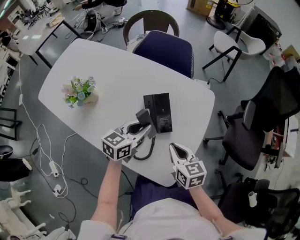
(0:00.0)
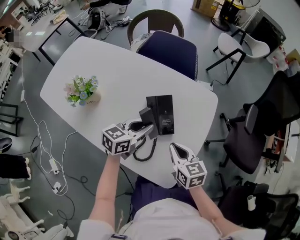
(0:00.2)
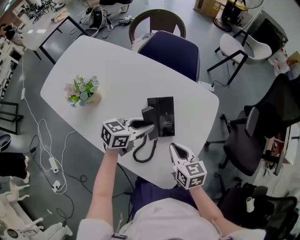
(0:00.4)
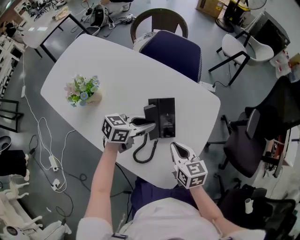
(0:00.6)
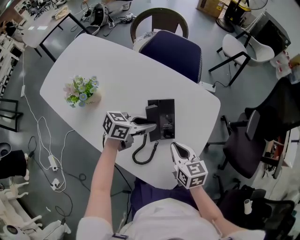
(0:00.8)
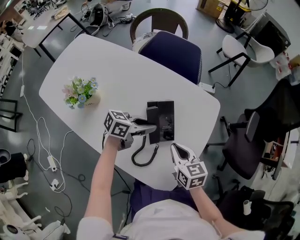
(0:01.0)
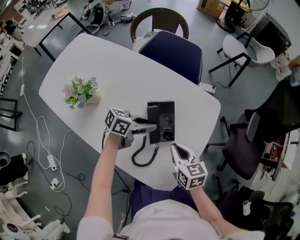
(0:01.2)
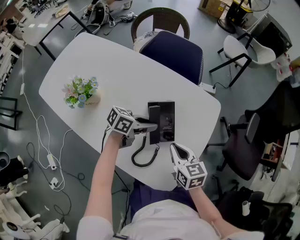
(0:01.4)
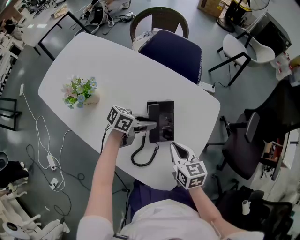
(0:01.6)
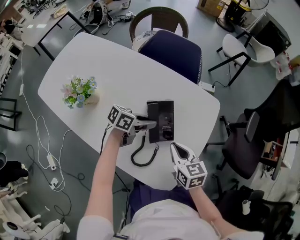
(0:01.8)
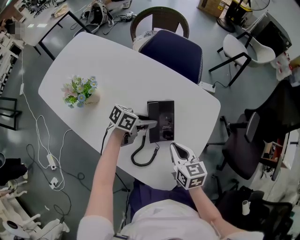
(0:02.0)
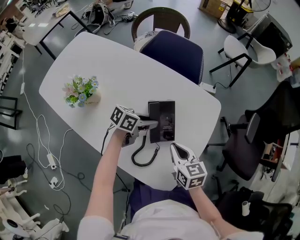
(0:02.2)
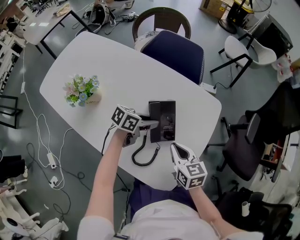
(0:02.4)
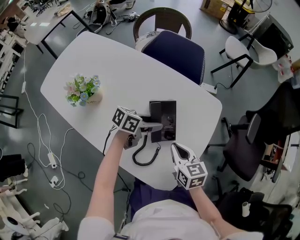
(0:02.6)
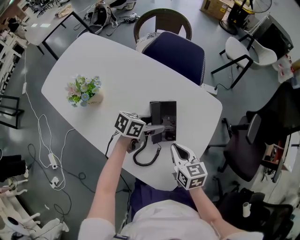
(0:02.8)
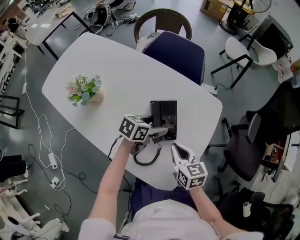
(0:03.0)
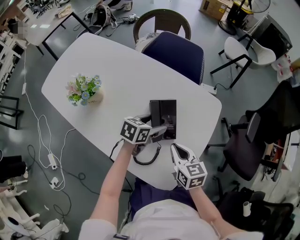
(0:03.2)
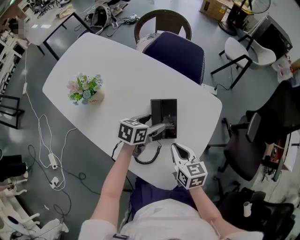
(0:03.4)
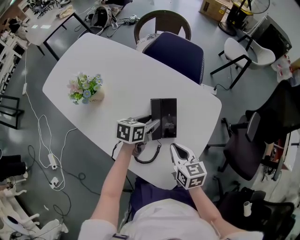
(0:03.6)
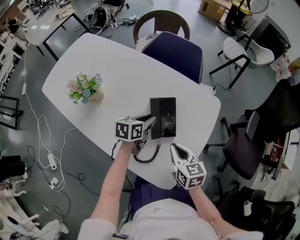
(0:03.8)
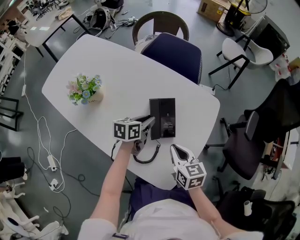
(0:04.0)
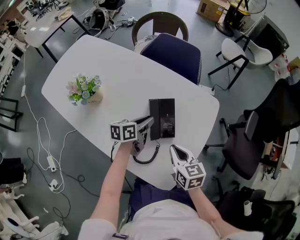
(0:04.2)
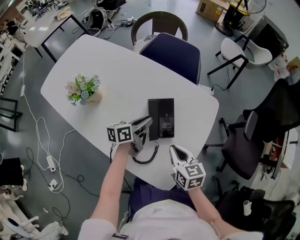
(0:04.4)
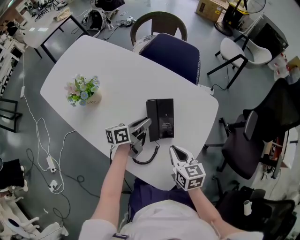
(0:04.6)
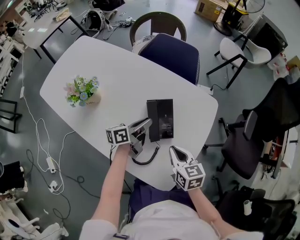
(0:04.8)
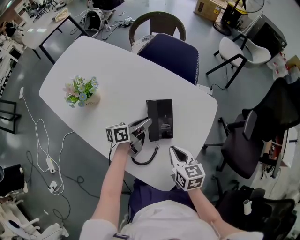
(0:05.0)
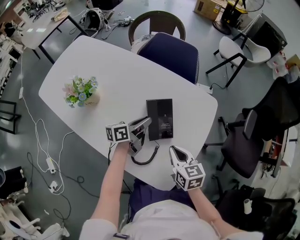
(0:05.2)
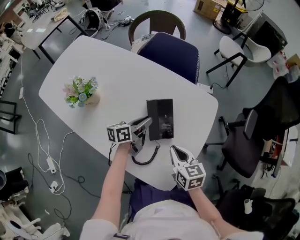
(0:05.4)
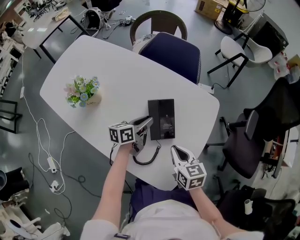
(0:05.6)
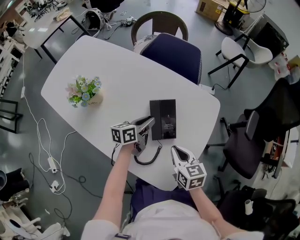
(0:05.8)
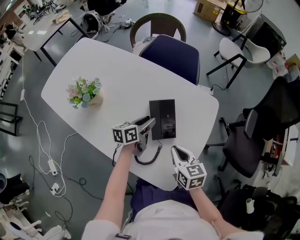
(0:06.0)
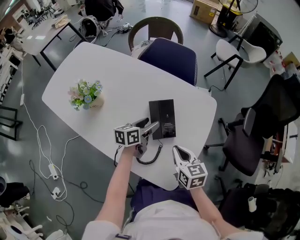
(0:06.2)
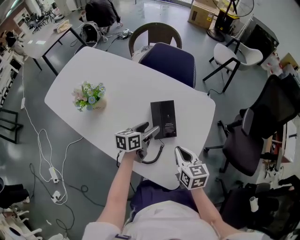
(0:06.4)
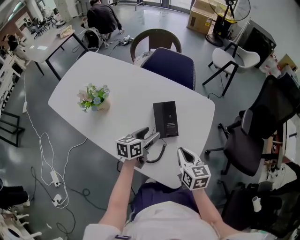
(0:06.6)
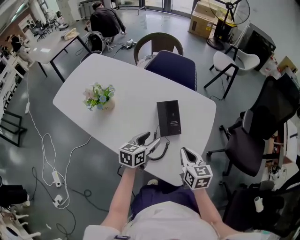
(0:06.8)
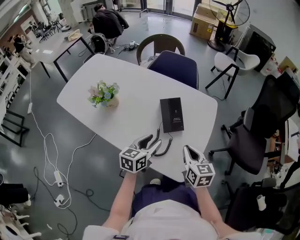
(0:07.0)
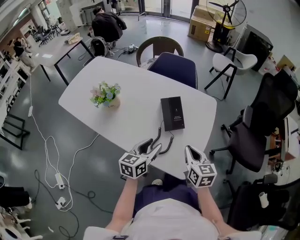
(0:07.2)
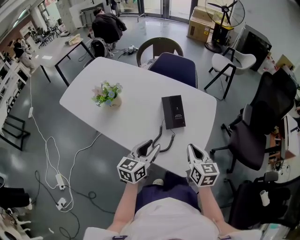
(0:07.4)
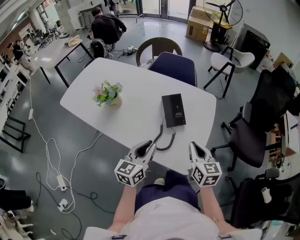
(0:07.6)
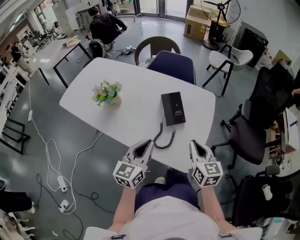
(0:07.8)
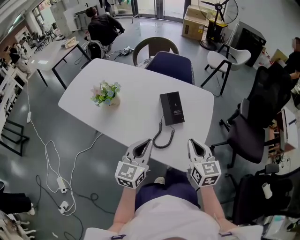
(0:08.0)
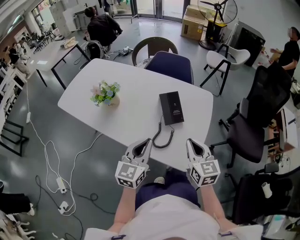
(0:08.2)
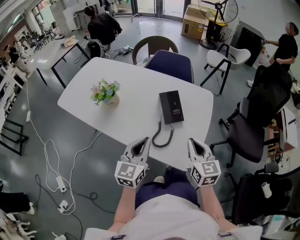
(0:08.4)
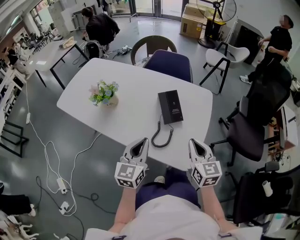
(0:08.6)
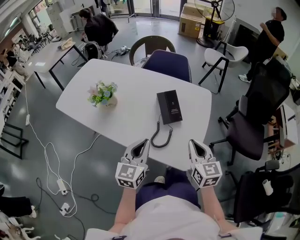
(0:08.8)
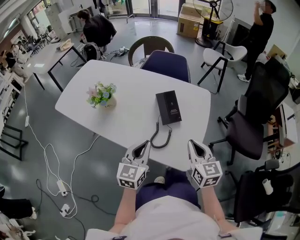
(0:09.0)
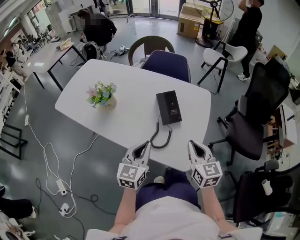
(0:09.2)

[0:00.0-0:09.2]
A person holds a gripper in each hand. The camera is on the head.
0:00.0 to 0:01.6: The left gripper goes about 5 cm downward, and swivels roughly 30 degrees.
0:01.6 to 0:03.0: The left gripper opens its fingers.
0:03.0 to 0:04.6: The left gripper goes approximately 5 cm to the left, rotates some 40 degrees, and closes.
0:04.6 to 0:06.2: The left gripper opens.
0:06.2 to 0:07.6: The right gripper is displaced backward and upward by roughly 10 cm. Meanwhile the left gripper goes approximately 25 cm backward and upward, rotates about 30 degrees, and closes.
0:07.6 to 0:09.2: The grippers move only a little.

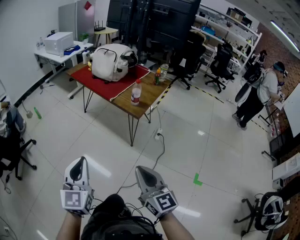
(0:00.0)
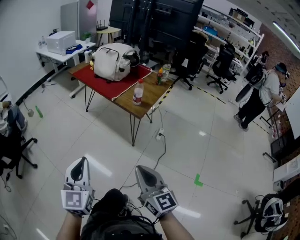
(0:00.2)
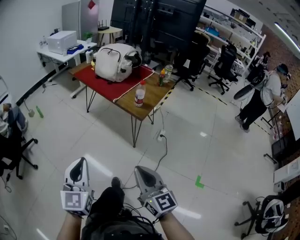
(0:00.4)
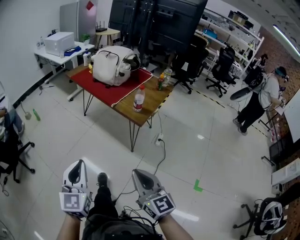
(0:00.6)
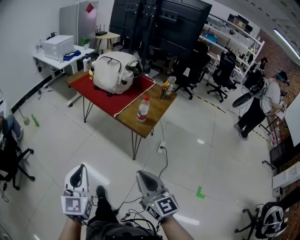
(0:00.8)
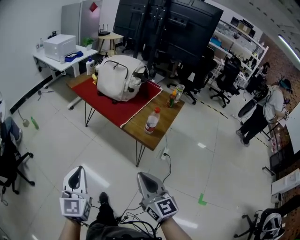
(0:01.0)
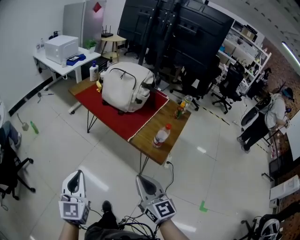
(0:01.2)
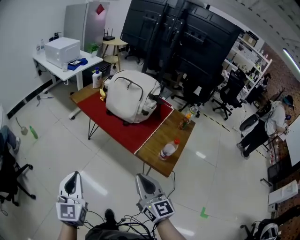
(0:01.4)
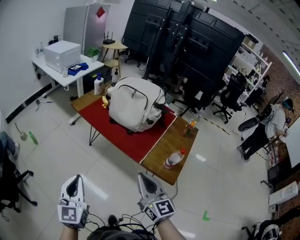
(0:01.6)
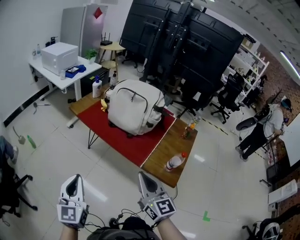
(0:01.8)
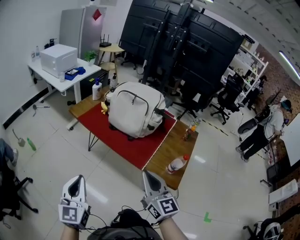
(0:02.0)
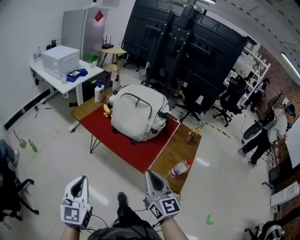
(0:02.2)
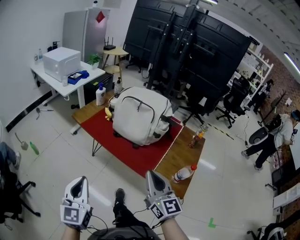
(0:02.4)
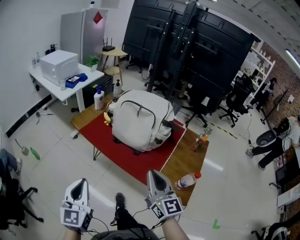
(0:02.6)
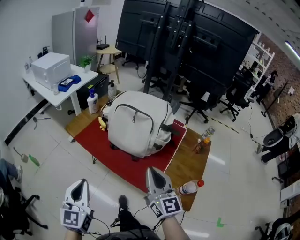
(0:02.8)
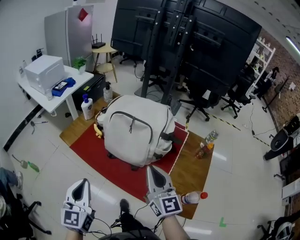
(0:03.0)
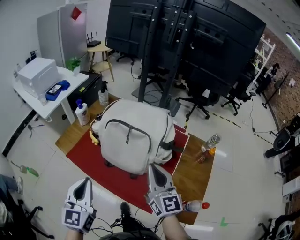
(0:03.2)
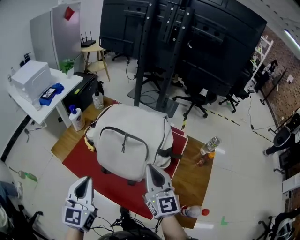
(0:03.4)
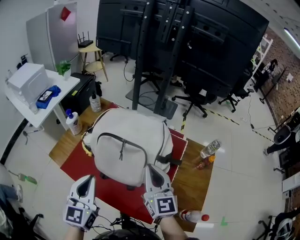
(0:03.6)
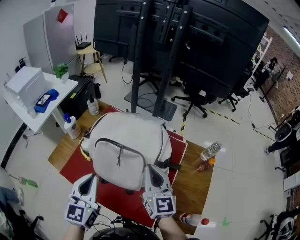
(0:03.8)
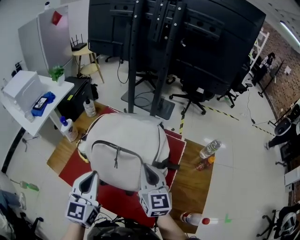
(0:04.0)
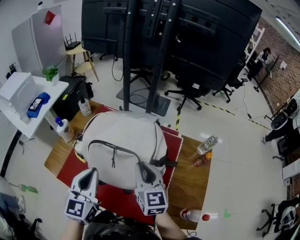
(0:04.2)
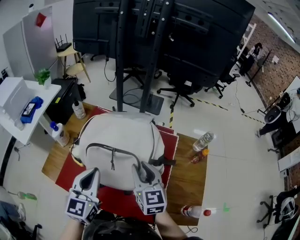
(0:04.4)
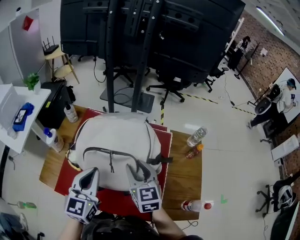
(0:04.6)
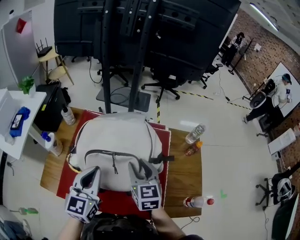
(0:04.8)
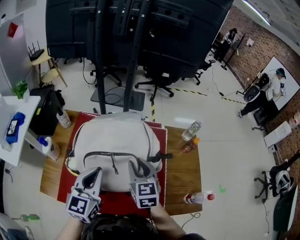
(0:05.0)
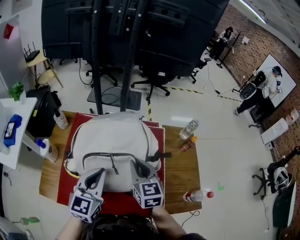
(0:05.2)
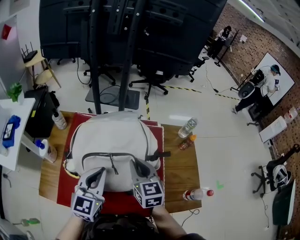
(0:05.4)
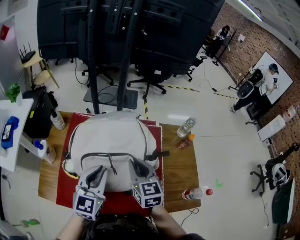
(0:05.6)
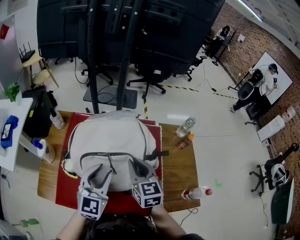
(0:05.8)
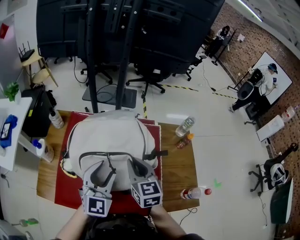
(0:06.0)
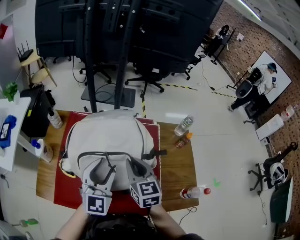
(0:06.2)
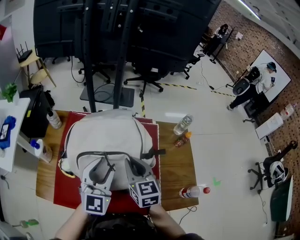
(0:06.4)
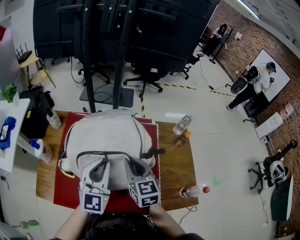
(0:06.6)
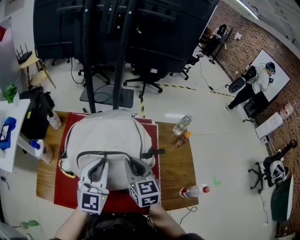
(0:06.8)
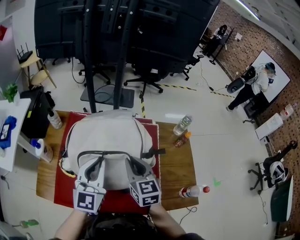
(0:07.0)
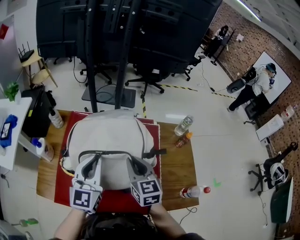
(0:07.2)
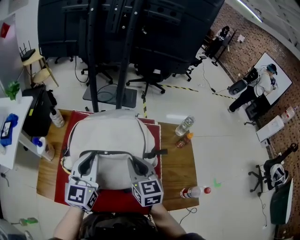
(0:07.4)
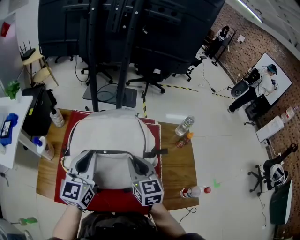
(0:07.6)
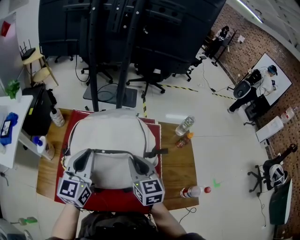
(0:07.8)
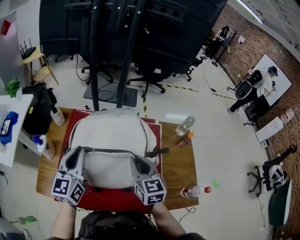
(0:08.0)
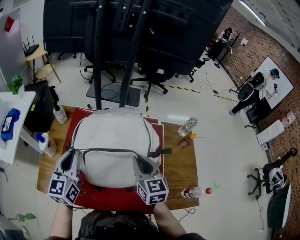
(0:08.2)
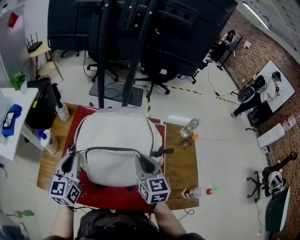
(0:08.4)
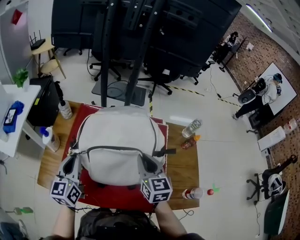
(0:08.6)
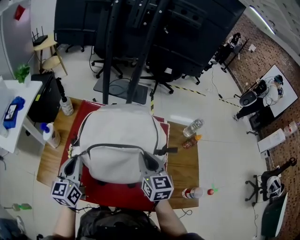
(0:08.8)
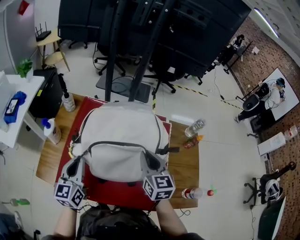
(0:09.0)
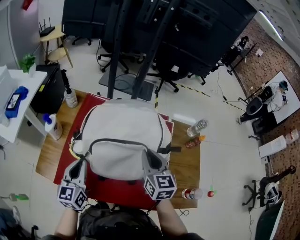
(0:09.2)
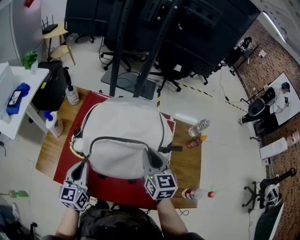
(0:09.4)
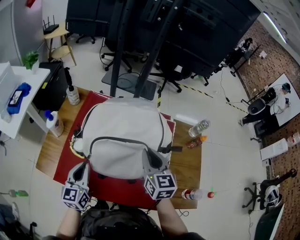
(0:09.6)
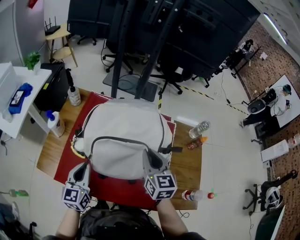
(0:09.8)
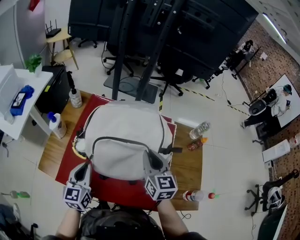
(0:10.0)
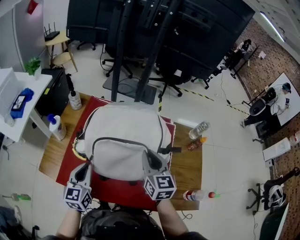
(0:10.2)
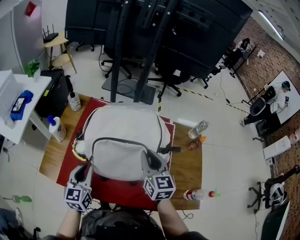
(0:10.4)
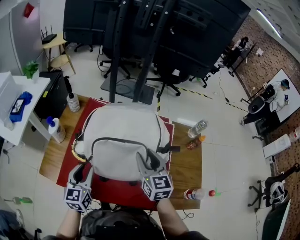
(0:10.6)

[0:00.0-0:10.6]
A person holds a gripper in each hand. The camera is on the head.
0:00.0 to 0:01.6: The two grippers travel together, forward and to the left, approximately 60 cm.
0:01.6 to 0:03.0: Both grippers travel together forward, some 35 cm.
0:03.0 to 0:04.6: Both grippers move forward, roughly 30 cm. The right gripper changes its angle by roughly 30 degrees, and opens up; the left gripper turns by about 30 degrees.
0:04.6 to 0:06.0: The left gripper changes place by roughly 5 cm, turns by about 30 degrees, and opens; the right gripper closes up.
0:06.0 to 0:07.6: The left gripper heads to the left, covering approximately 5 cm, changes its angle by some 30 degrees, and closes up.
0:07.6 to 0:09.0: The left gripper is displaced to the left, downward and backward by roughly 15 cm.
0:09.0 to 0:10.6: The left gripper moves roughly 5 cm, and opens up. The right gripper opens.

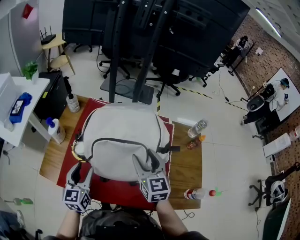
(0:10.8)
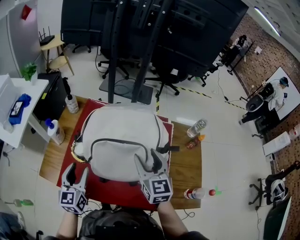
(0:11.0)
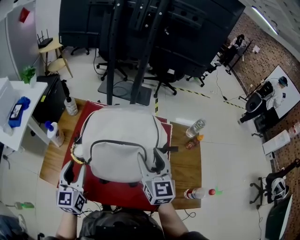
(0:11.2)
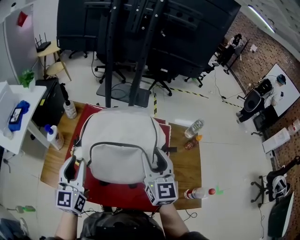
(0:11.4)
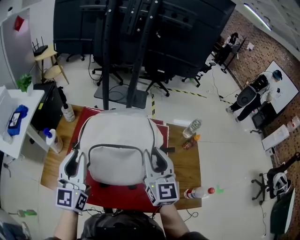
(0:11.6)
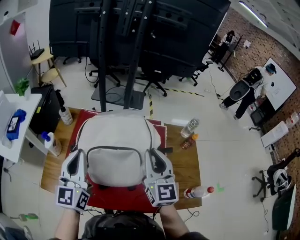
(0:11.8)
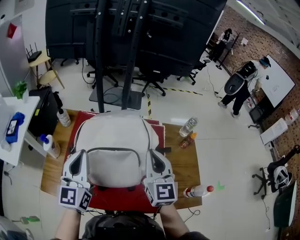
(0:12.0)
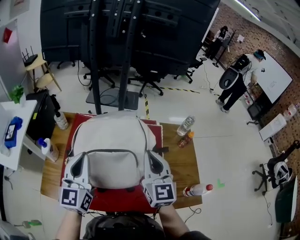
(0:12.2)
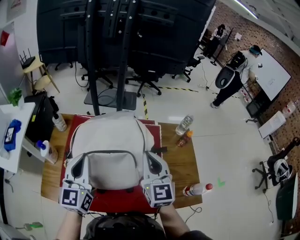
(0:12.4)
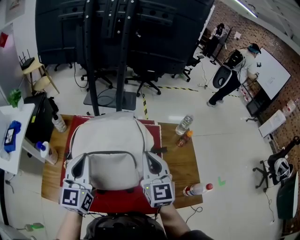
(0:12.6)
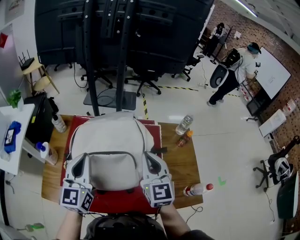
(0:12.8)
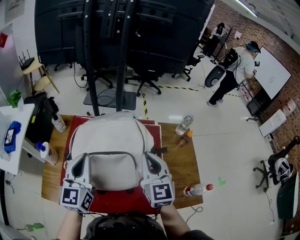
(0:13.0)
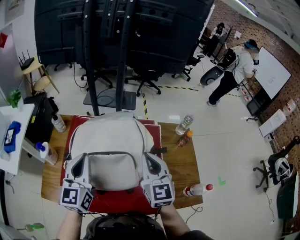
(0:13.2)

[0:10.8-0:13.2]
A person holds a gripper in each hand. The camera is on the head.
0:10.8 to 0:12.0: The left gripper is displaced upward by approximately 15 cm, changes its angle by roughly 20 degrees, and closes. The right gripper travels upward and to the right by about 10 cm, and closes up.
0:12.0 to 0:13.2: The grippers make only small movements.

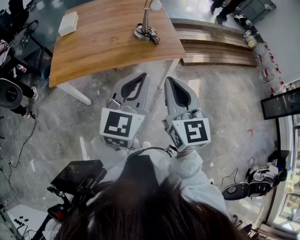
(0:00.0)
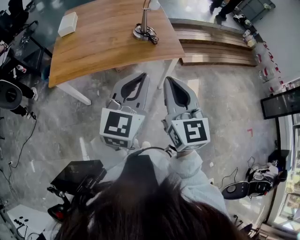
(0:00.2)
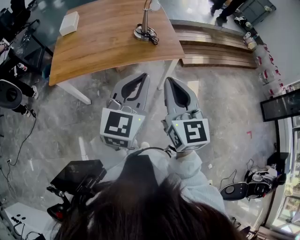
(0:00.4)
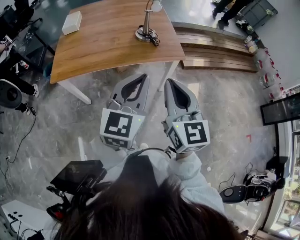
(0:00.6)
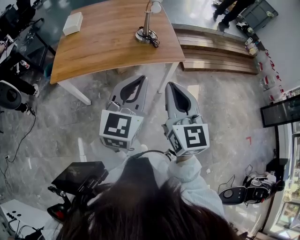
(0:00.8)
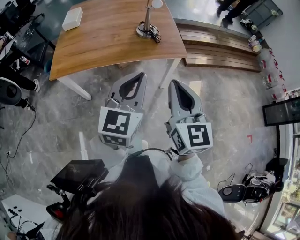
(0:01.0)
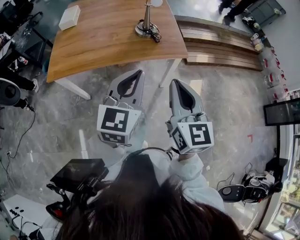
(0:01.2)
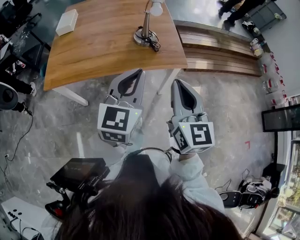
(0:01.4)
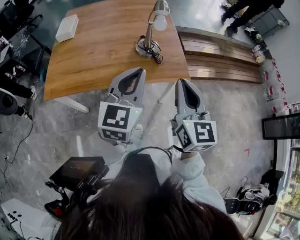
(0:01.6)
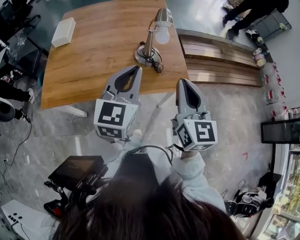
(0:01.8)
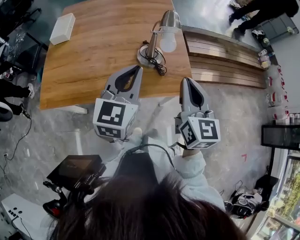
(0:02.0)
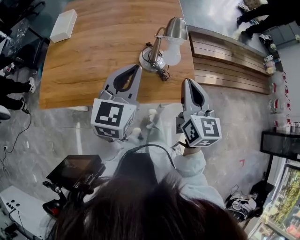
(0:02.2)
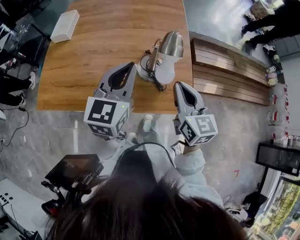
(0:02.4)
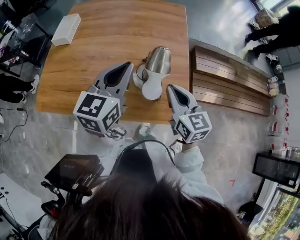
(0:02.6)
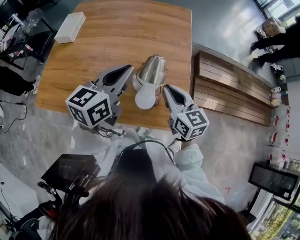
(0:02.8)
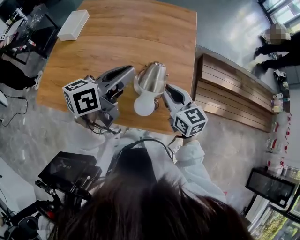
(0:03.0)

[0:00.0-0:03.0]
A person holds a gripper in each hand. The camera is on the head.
0:00.0 to 0:01.6: Both grippers move forward, roughly 20 cm.
0:01.6 to 0:03.0: The right gripper is displaced forward and downward by about 40 cm, and swivels some 40 degrees. The left gripper moves forward, roughly 35 cm, and rotates around the line of its fingers by some 40 degrees, counterclockwise from behind.
